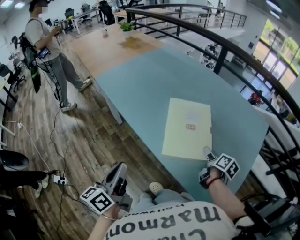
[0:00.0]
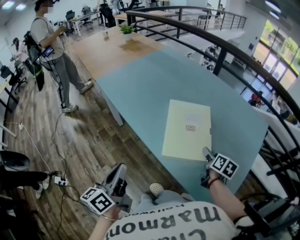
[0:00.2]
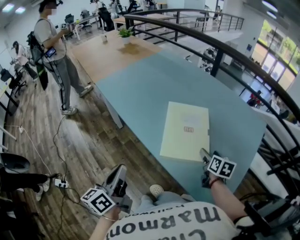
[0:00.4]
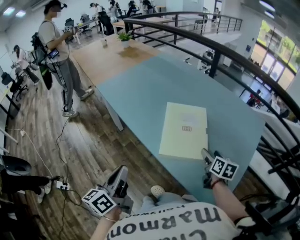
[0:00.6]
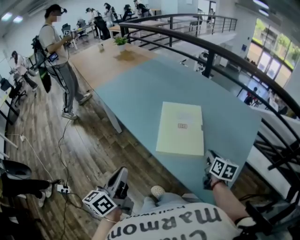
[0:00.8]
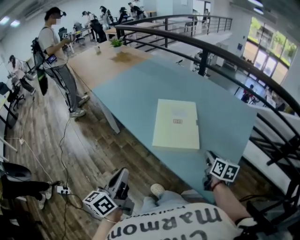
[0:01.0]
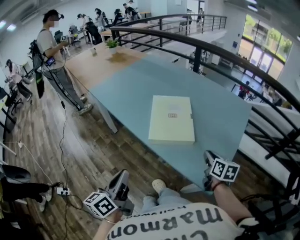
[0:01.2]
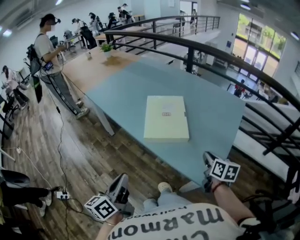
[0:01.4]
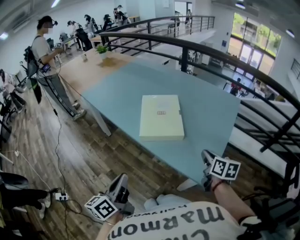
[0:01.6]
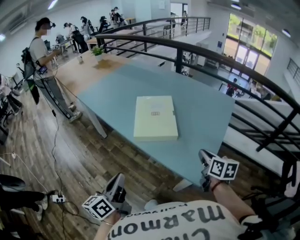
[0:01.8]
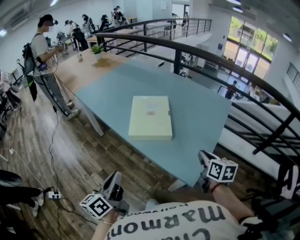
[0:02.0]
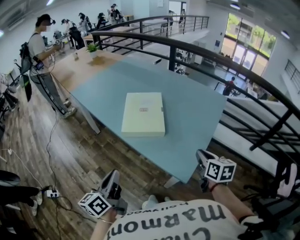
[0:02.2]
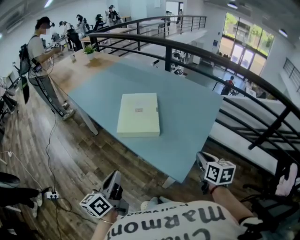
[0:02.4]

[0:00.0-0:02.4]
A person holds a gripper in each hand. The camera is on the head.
0:00.0 to 0:01.2: The left gripper changes place by roughly 10 cm.
0:01.2 to 0:02.4: The left gripper shifts by approximately 10 cm.

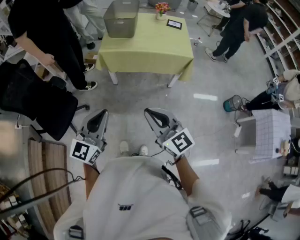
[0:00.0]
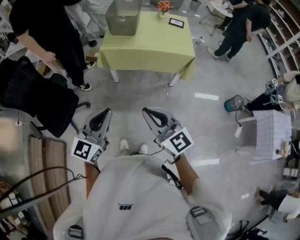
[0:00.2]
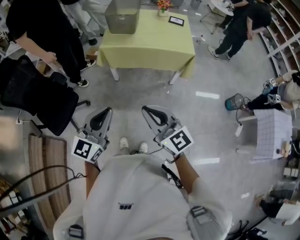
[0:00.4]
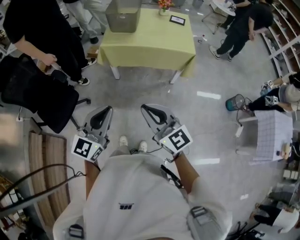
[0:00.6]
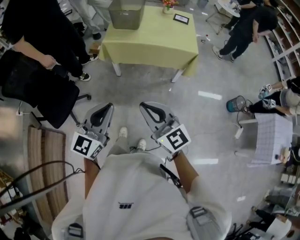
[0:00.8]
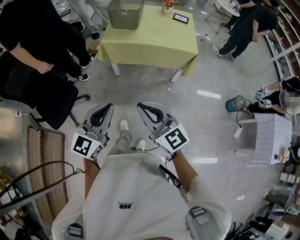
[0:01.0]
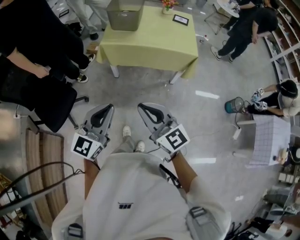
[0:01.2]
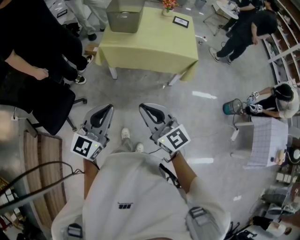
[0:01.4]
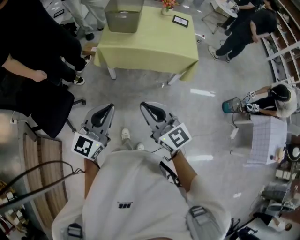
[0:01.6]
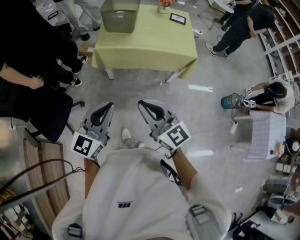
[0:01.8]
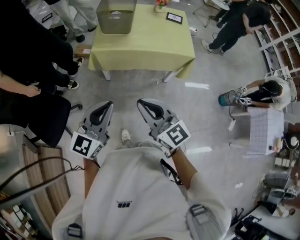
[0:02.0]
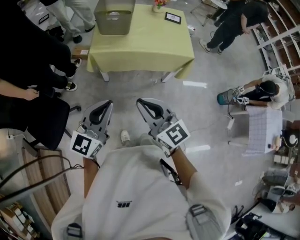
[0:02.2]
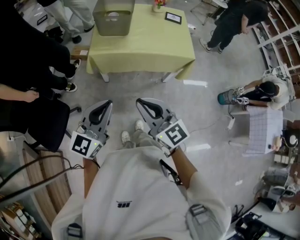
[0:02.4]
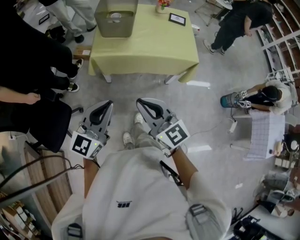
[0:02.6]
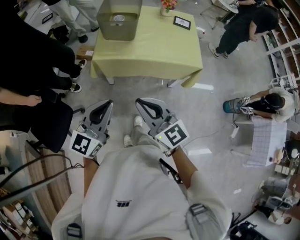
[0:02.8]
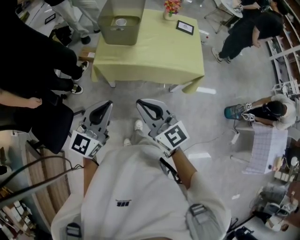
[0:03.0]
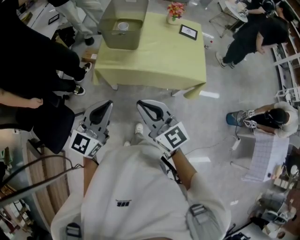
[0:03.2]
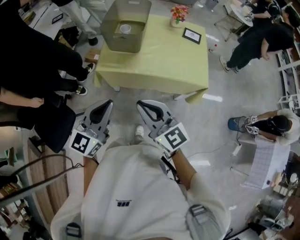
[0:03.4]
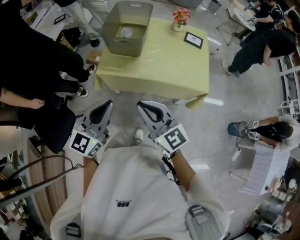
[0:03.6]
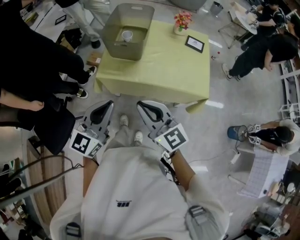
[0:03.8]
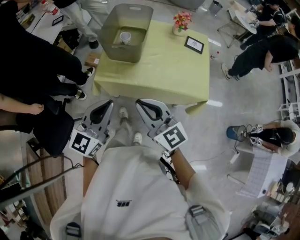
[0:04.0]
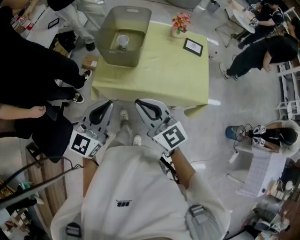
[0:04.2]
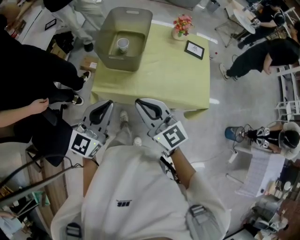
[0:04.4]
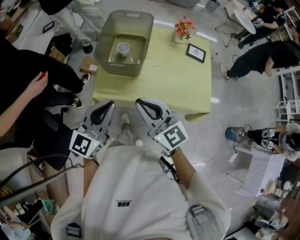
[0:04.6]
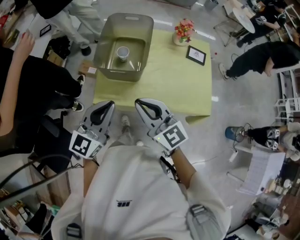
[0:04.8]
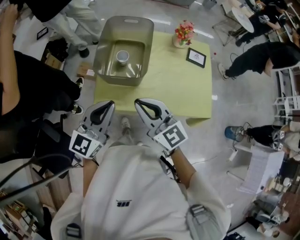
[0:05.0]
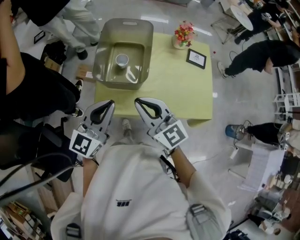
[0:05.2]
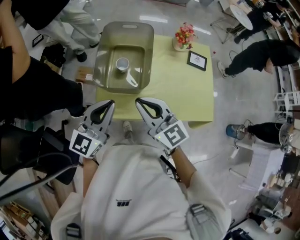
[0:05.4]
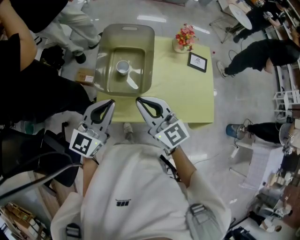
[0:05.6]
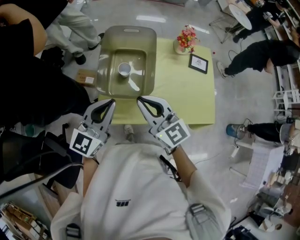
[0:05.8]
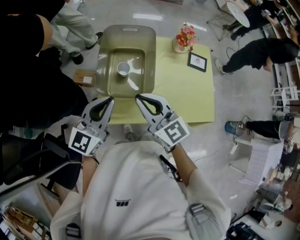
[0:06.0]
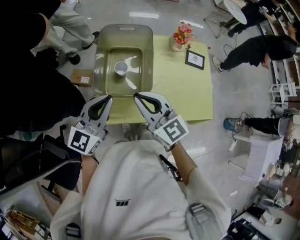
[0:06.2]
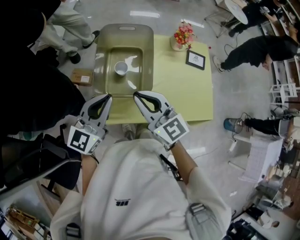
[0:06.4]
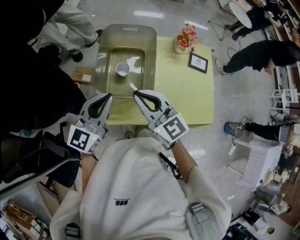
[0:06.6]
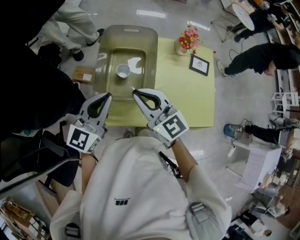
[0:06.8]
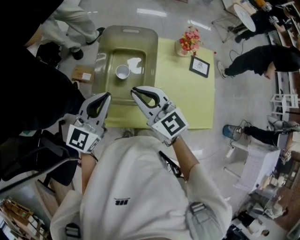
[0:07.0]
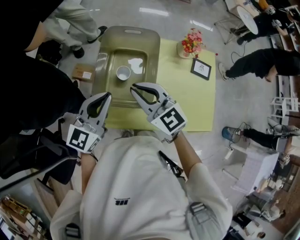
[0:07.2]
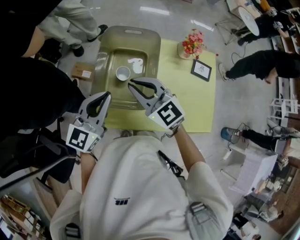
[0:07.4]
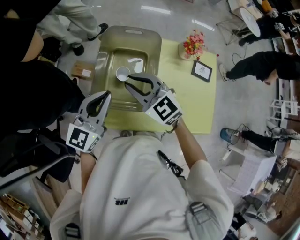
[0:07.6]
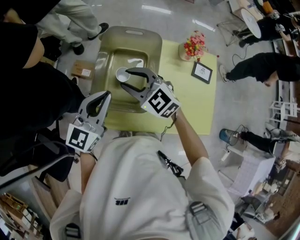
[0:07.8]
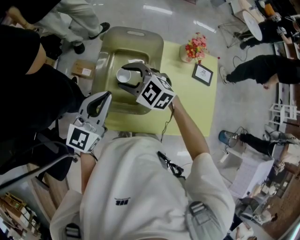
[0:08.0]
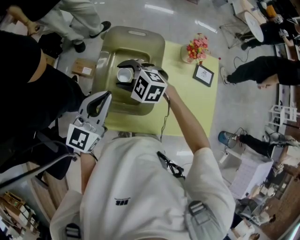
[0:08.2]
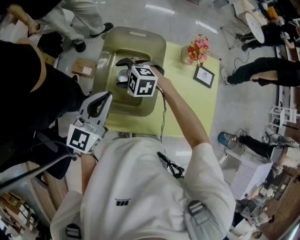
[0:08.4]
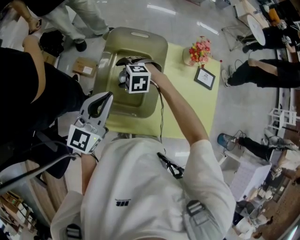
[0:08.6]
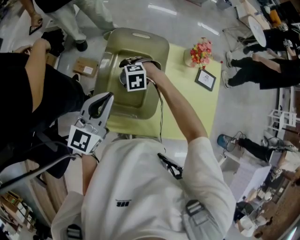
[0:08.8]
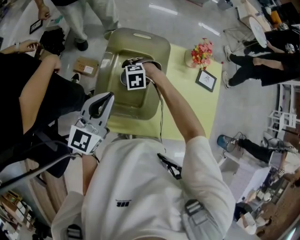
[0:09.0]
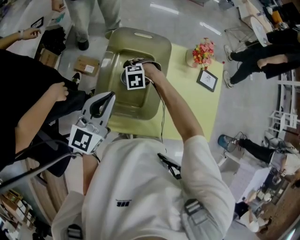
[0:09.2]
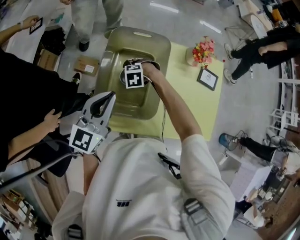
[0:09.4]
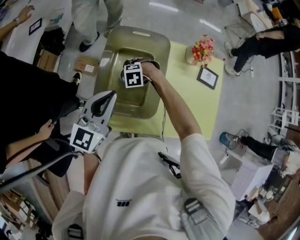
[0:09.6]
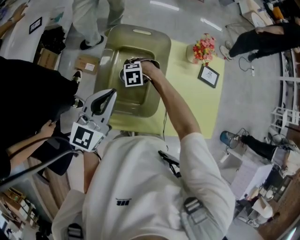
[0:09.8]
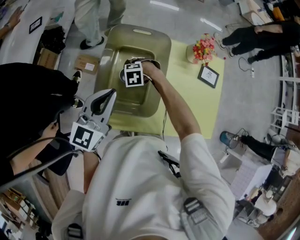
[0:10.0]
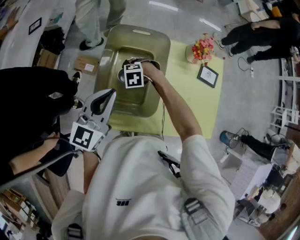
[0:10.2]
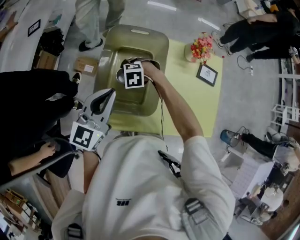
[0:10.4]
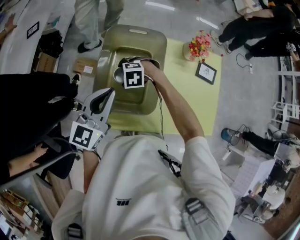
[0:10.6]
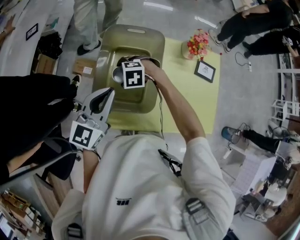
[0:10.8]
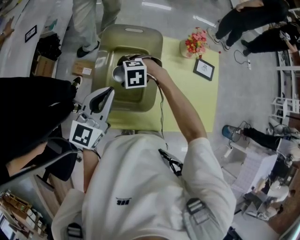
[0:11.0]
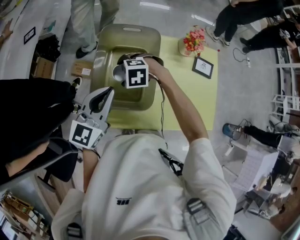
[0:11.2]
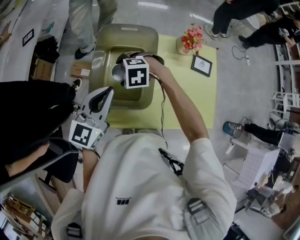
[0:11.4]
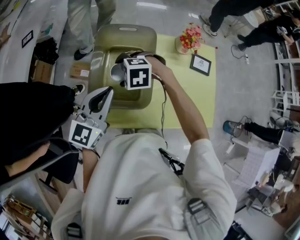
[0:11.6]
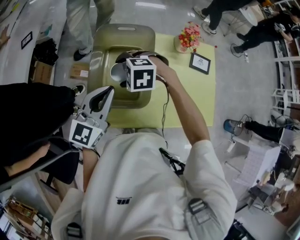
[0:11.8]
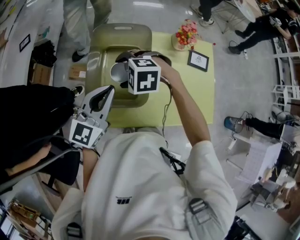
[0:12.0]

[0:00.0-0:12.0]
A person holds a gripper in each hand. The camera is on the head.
0:00.0 to 0:01.6: Both grippers move forward, about 10 cm.
0:01.6 to 0:03.0: The two grippers go some 20 cm forward.
0:03.0 to 0:04.4: Both grippers travel together forward, roughly 25 cm.
0:04.4 to 0:06.0: Both grippers move forward, about 25 cm.
0:06.0 to 0:07.6: The right gripper heads forward and downward, covering some 15 cm, and rotates about 30 degrees, while the left gripper moves forward, about 10 cm.
0:07.6 to 0:09.0: The right gripper travels downward by roughly 20 cm, points its fingers approximately 50 degrees further downward, and opens up.
0:09.0 to 0:10.4: The grippers make only small movements.
0:10.4 to 0:12.0: The right gripper goes roughly 15 cm upward.

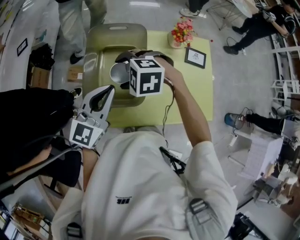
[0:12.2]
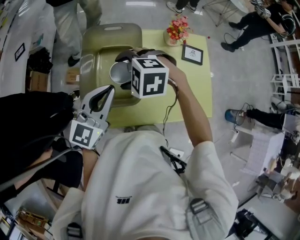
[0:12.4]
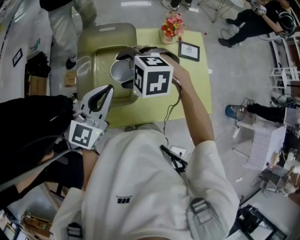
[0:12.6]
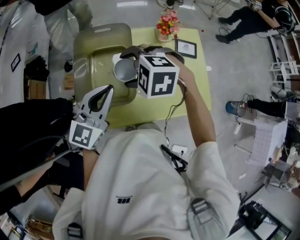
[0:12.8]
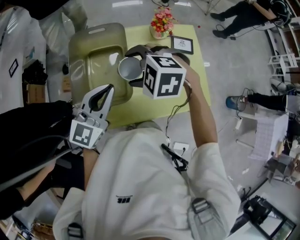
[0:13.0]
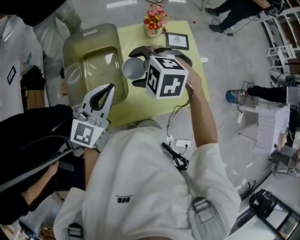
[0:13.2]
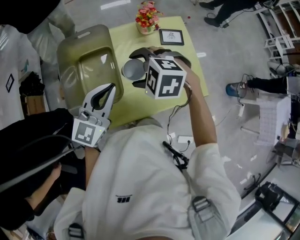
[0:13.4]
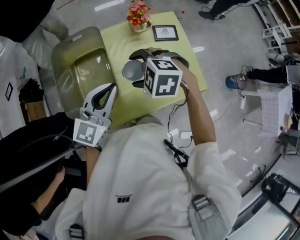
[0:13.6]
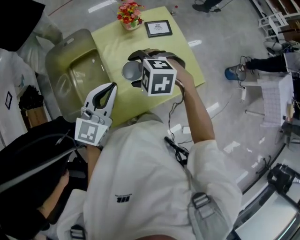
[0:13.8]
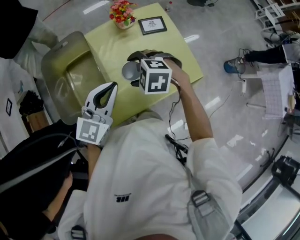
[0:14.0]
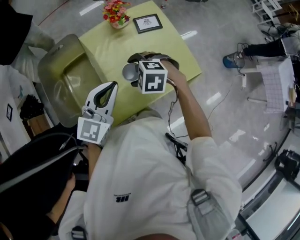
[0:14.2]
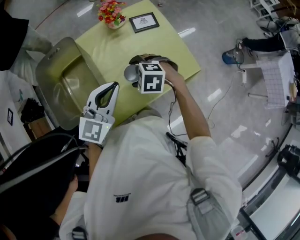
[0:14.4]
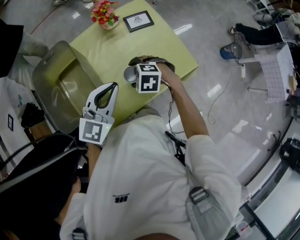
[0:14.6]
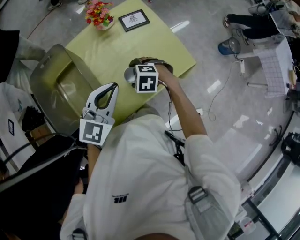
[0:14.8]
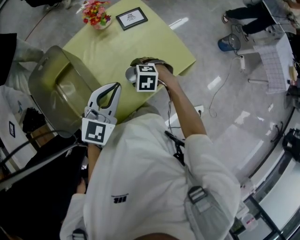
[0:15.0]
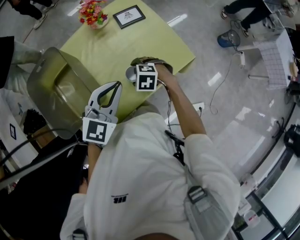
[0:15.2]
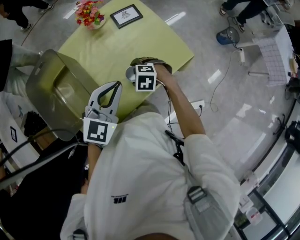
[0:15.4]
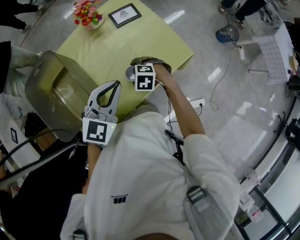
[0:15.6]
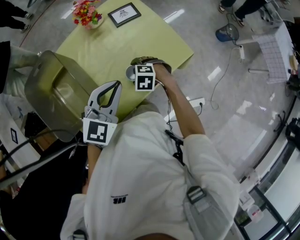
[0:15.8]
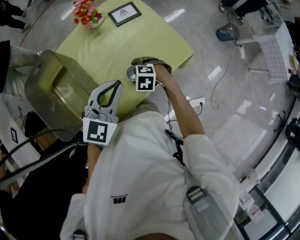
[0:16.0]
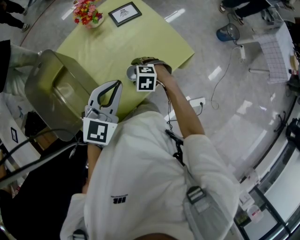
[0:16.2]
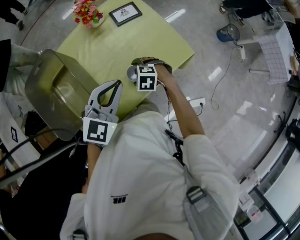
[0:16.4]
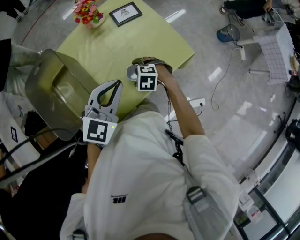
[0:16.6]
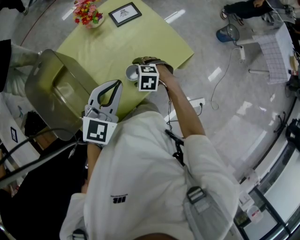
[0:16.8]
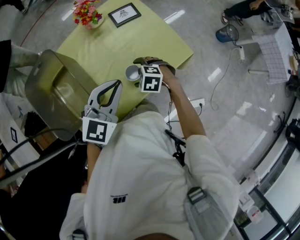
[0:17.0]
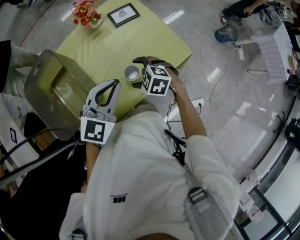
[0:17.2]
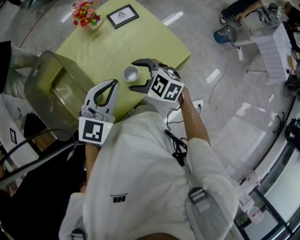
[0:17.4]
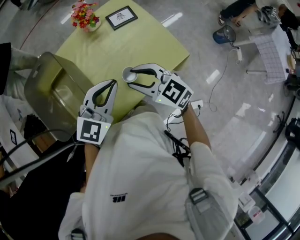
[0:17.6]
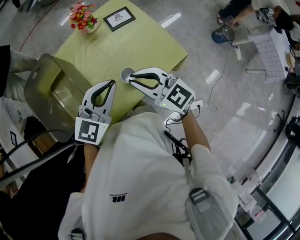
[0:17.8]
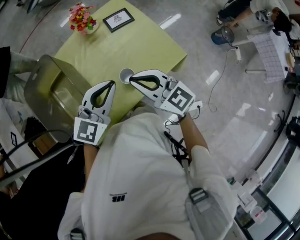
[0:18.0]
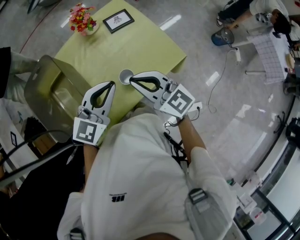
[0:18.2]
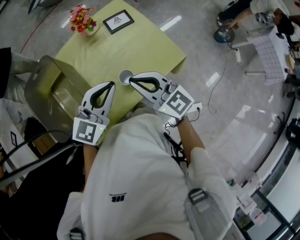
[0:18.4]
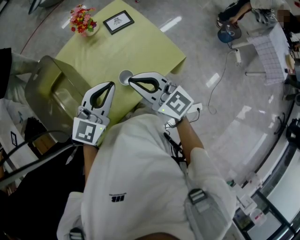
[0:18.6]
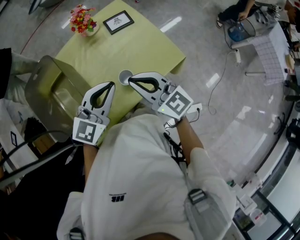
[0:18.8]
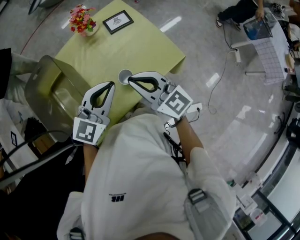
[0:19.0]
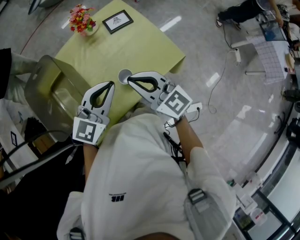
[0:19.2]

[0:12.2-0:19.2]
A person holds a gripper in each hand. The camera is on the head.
0:12.2 to 0:13.6: The right gripper heads to the right and backward, covering roughly 20 cm, and turns by about 30 degrees, while the left gripper travels to the right by some 10 cm.
0:13.6 to 0:15.0: The right gripper shifts some 20 cm downward and to the right, and swivels roughly 20 degrees. The left gripper is displaced to the right and downward by some 10 cm, and changes its angle by about 20 degrees.
0:15.0 to 0:16.4: The right gripper ends up some 5 cm from where it was.
0:16.4 to 0:17.8: The right gripper heads upward, covering about 25 cm, tilts its fingers approximately 50 degrees upward, and closes its fingers.
0:17.8 to 0:19.2: The grippers move only a little.

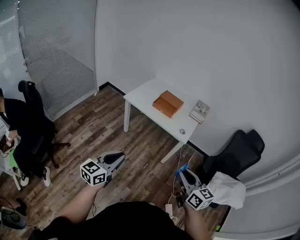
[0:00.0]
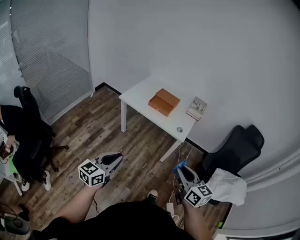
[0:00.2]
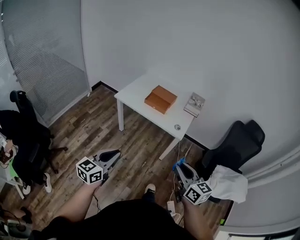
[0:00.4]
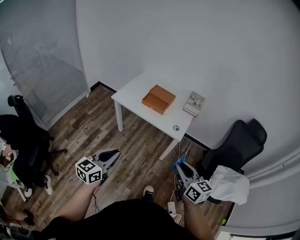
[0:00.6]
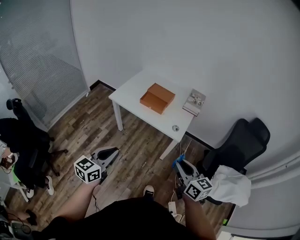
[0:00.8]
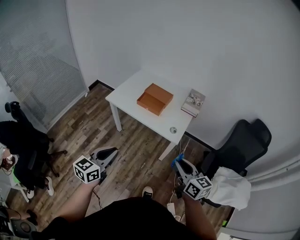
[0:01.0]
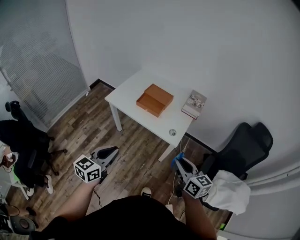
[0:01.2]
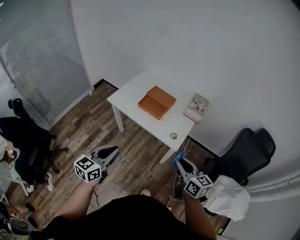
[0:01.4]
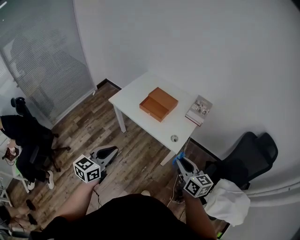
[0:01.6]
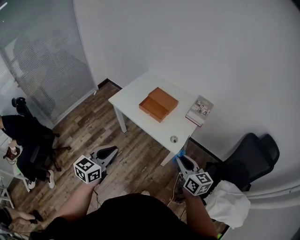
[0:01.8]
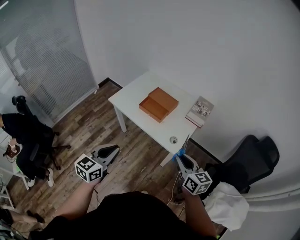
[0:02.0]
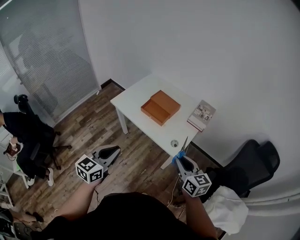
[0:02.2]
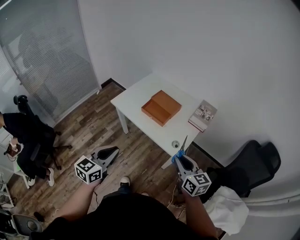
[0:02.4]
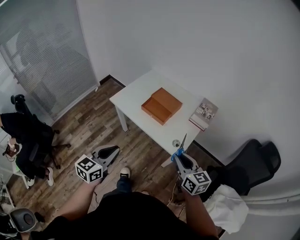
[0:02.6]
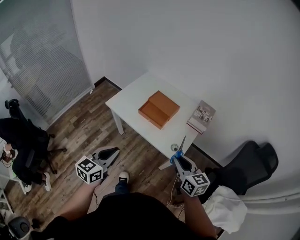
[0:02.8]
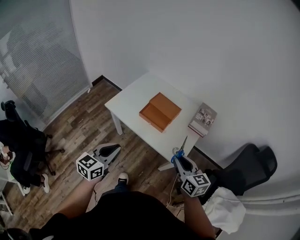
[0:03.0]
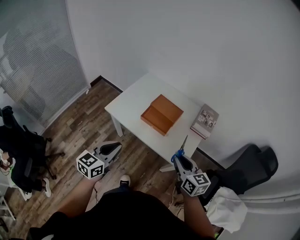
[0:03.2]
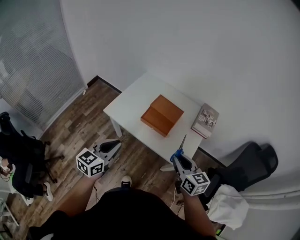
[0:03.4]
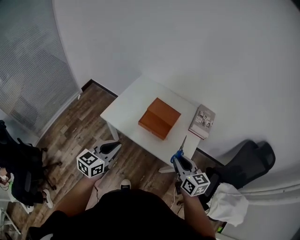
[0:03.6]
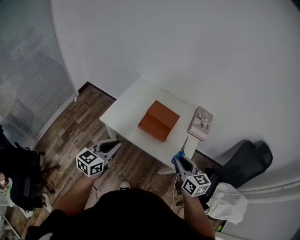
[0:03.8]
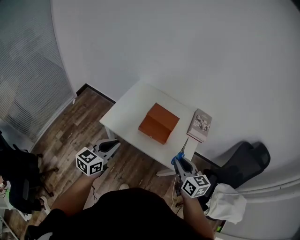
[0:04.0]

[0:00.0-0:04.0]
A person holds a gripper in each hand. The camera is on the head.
0:00.0 to 0:01.4: Both grippers travel together forward and to the right, roughly 25 cm.
0:01.4 to 0:02.6: The left gripper goes about 5 cm forward; the right gripper heads forward, covering approximately 10 cm.
0:02.6 to 0:04.0: The left gripper travels forward and to the left by roughly 25 cm; the right gripper is displaced to the left and forward by some 15 cm.